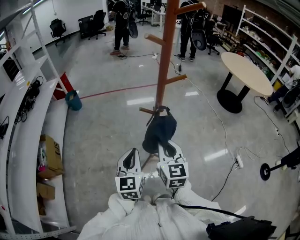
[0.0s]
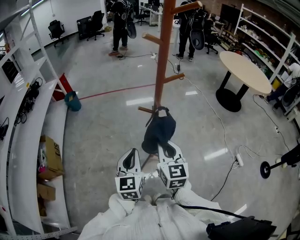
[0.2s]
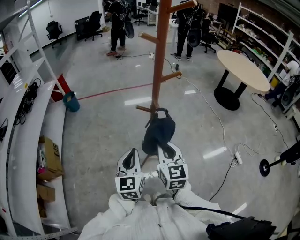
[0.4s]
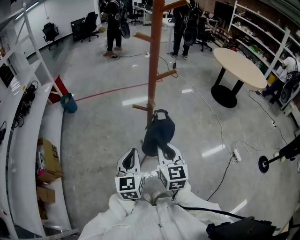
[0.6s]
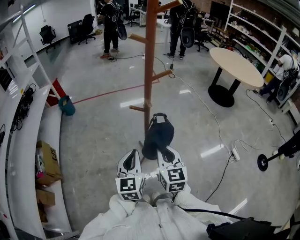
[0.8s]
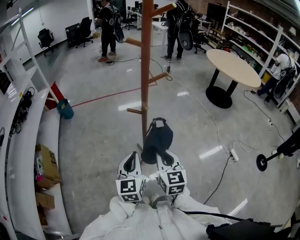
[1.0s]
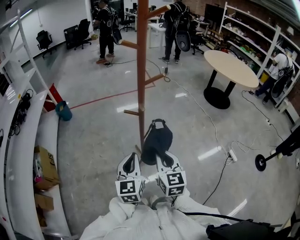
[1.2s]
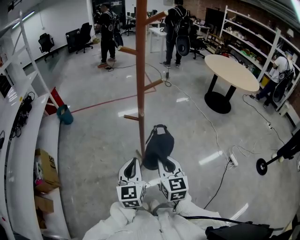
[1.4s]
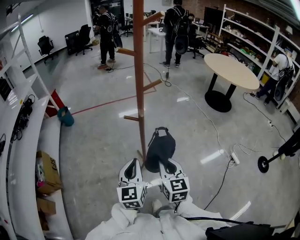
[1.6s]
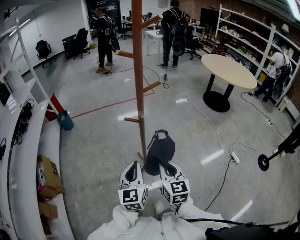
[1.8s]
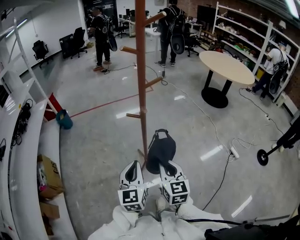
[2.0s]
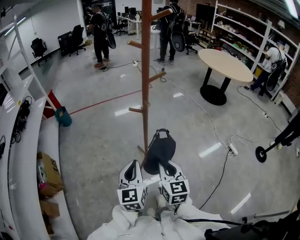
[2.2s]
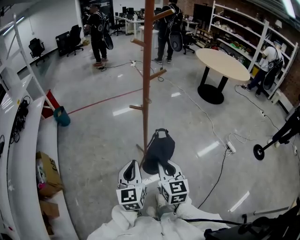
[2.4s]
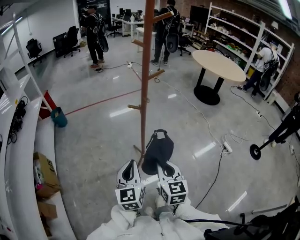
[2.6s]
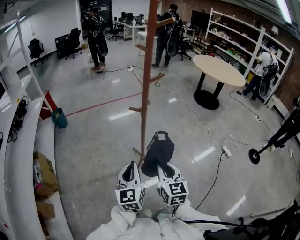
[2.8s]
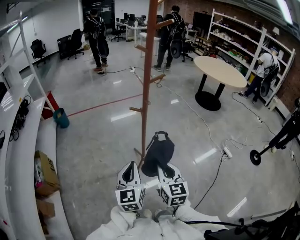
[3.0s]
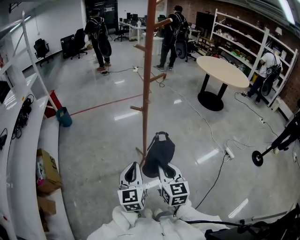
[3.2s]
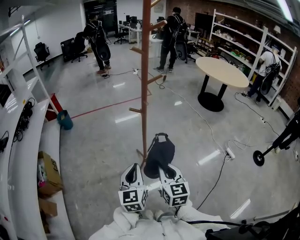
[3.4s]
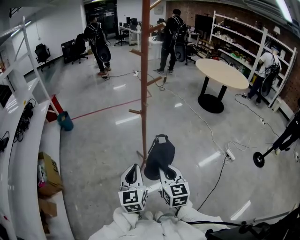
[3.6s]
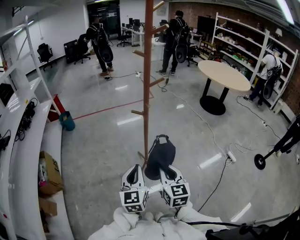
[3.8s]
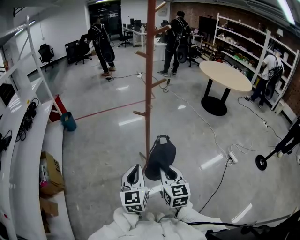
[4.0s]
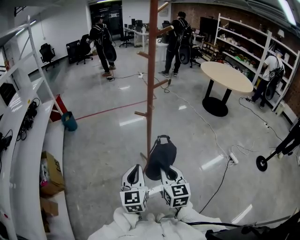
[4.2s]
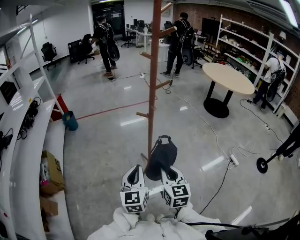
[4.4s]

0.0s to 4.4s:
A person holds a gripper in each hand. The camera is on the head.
0.0s to 1.4s: The left gripper shifts some 5 cm to the right. Meanwhile the right gripper goes some 10 cm backward and to the right.
1.4s to 3.0s: The right gripper heads backward, covering about 10 cm; the left gripper heads backward and to the left, covering approximately 10 cm.
3.0s to 4.4s: The grippers move only a little.

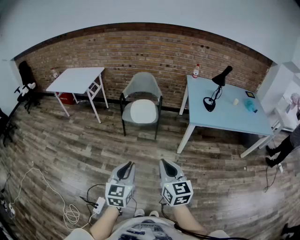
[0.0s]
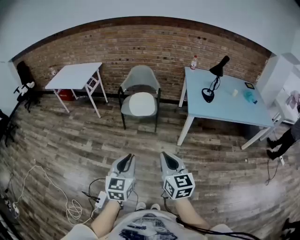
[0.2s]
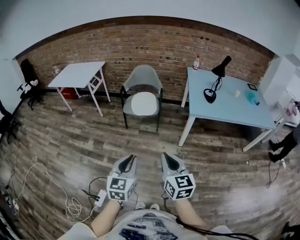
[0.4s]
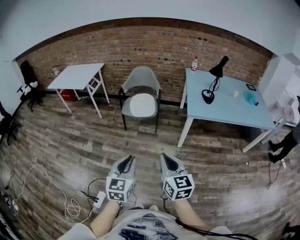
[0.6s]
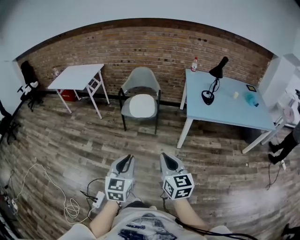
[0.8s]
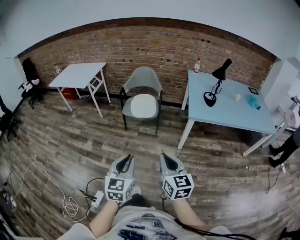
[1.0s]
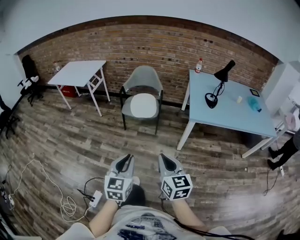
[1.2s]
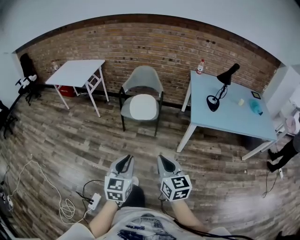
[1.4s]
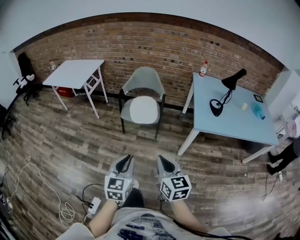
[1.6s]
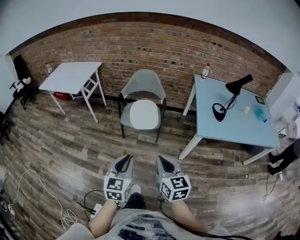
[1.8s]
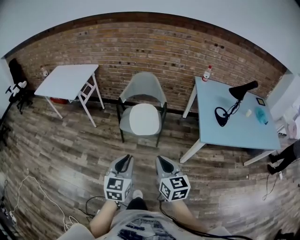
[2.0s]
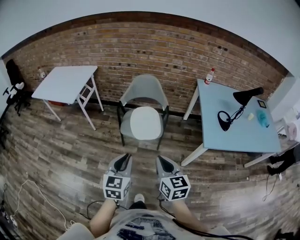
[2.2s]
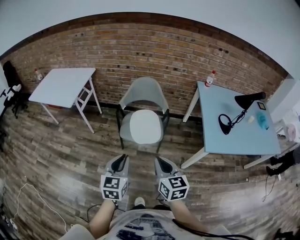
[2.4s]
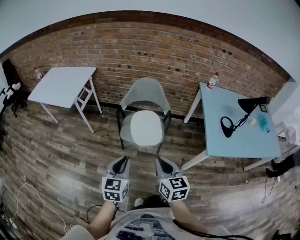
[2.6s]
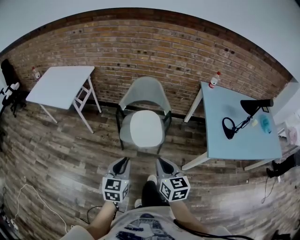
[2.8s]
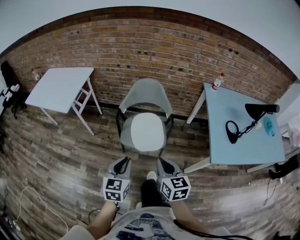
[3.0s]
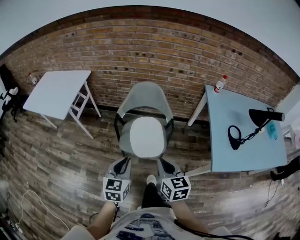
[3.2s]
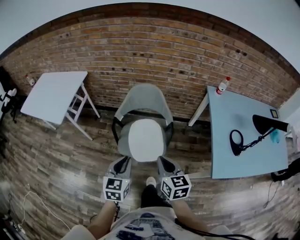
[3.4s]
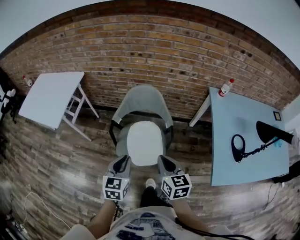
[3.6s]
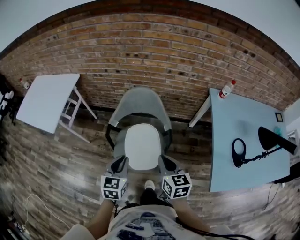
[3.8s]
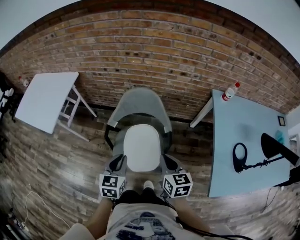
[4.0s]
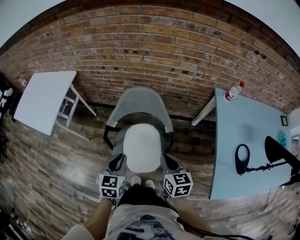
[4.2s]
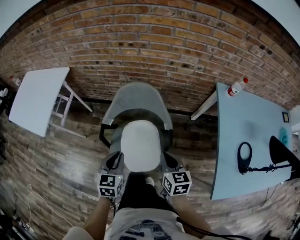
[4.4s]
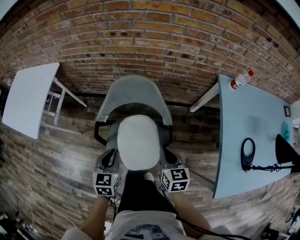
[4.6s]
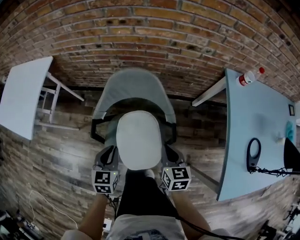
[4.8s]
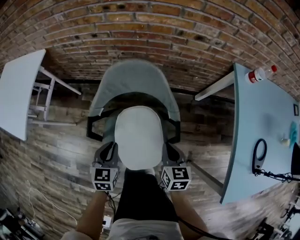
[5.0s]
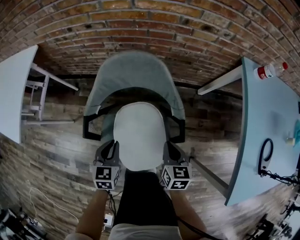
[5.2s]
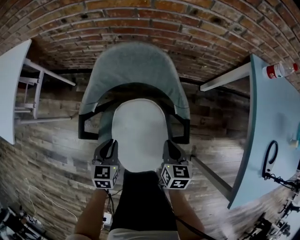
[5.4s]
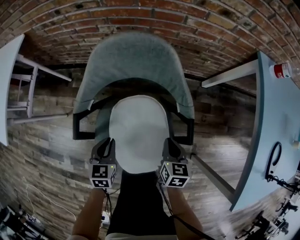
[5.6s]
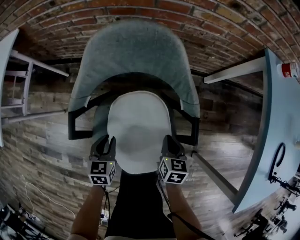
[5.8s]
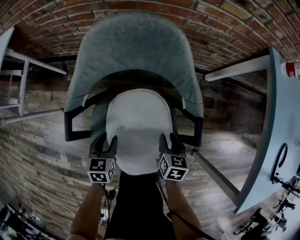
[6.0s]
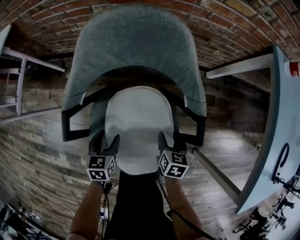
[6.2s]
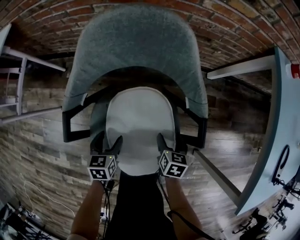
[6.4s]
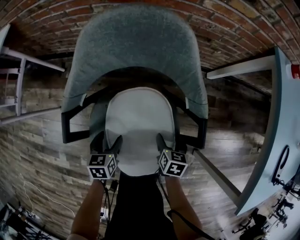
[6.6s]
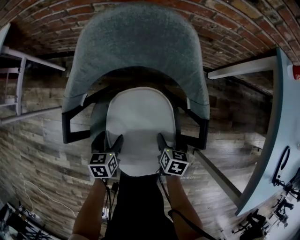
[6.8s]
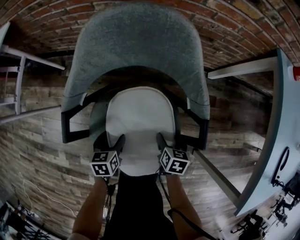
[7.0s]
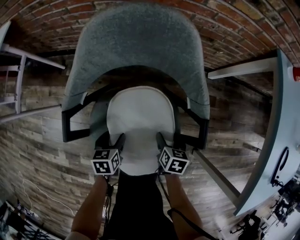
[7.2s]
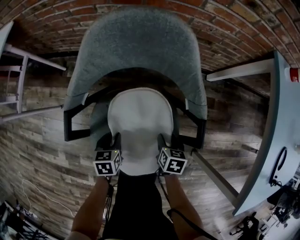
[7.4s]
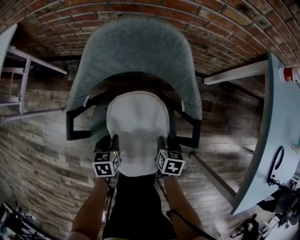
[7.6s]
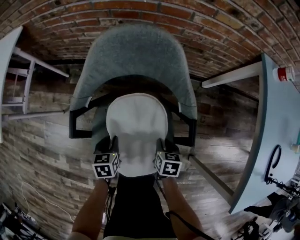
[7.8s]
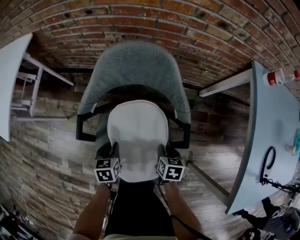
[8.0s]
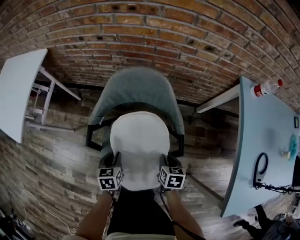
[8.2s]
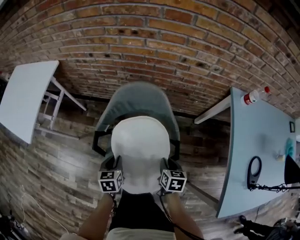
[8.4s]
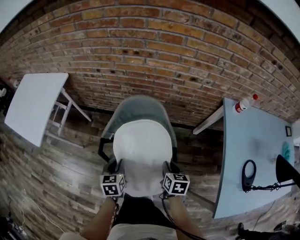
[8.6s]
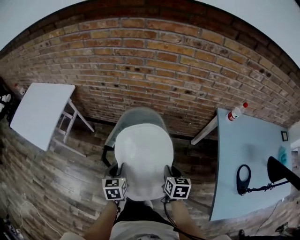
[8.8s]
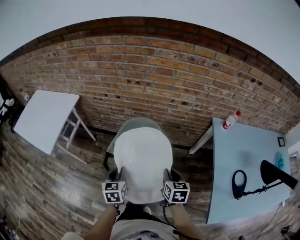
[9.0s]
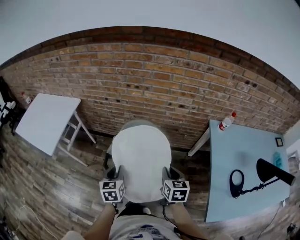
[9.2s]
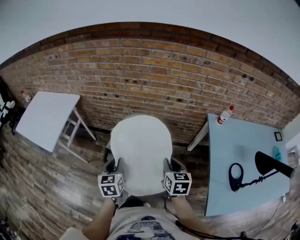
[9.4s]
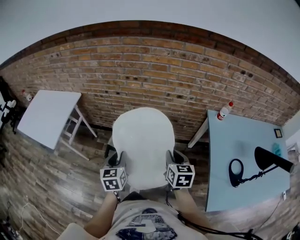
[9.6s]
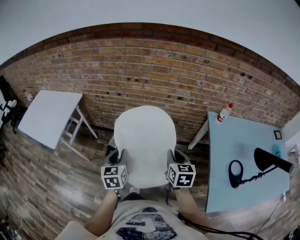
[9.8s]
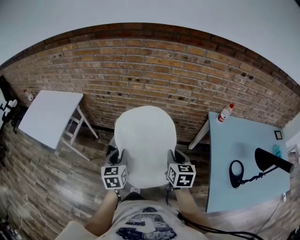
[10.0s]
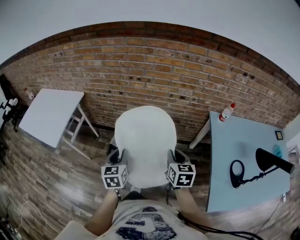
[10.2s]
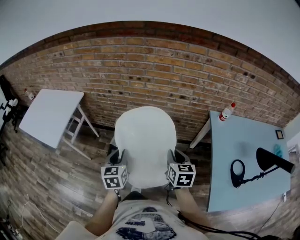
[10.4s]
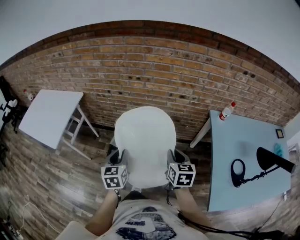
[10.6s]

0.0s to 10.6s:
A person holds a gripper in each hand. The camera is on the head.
0.0s to 1.6s: The grippers both shift forward by some 15 cm.
1.6s to 3.0s: The grippers both shift forward by about 35 cm.
3.0s to 4.6s: Both grippers move forward and downward, some 40 cm.
4.6s to 6.0s: The grippers both shift downward by approximately 35 cm. The right gripper turns by roughly 20 degrees, and opens.
6.0s to 7.6s: The right gripper opens, then closes again. Meanwhile the left gripper opens, then closes once more.
7.6s to 9.0s: Both grippers travel together upward, approximately 40 cm. The right gripper turns by approximately 30 degrees. The left gripper turns by roughly 30 degrees.
9.0s to 10.6s: Both grippers travel together upward, some 10 cm.

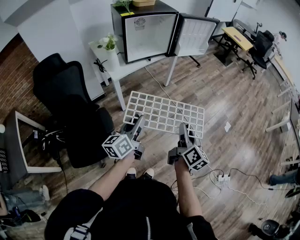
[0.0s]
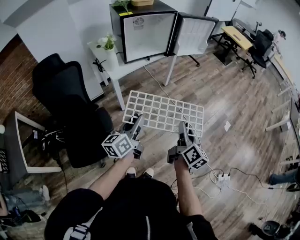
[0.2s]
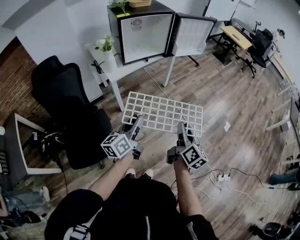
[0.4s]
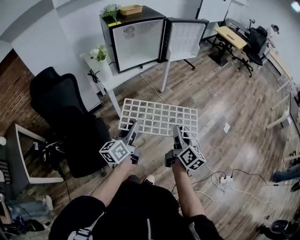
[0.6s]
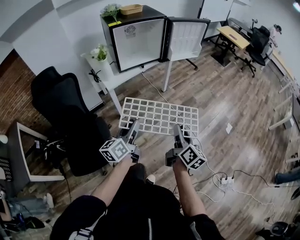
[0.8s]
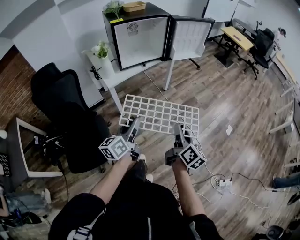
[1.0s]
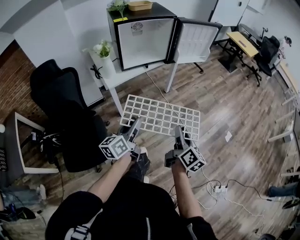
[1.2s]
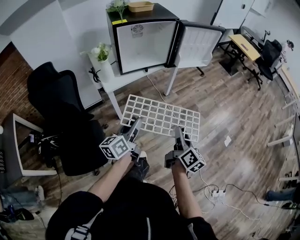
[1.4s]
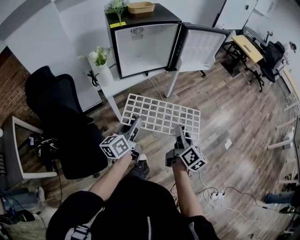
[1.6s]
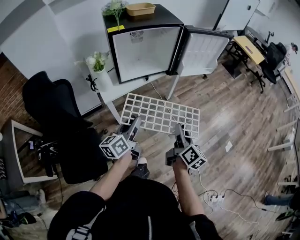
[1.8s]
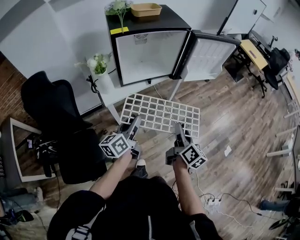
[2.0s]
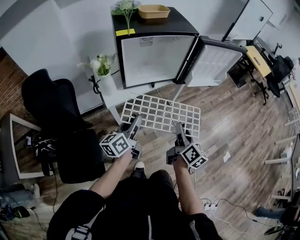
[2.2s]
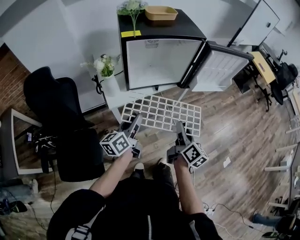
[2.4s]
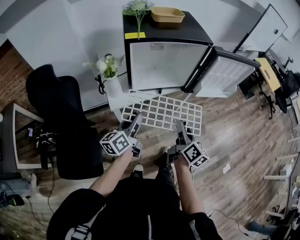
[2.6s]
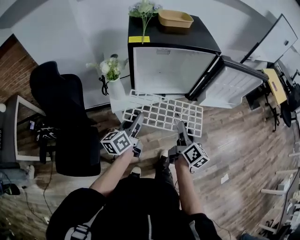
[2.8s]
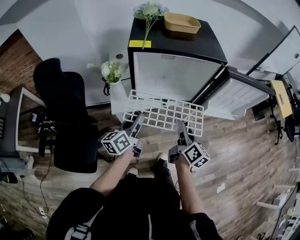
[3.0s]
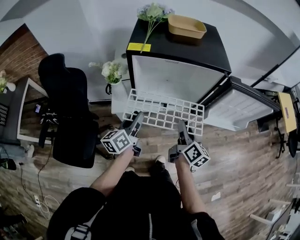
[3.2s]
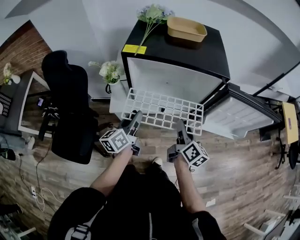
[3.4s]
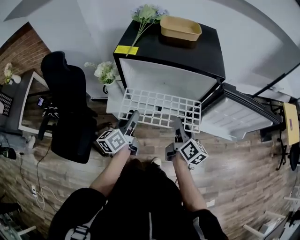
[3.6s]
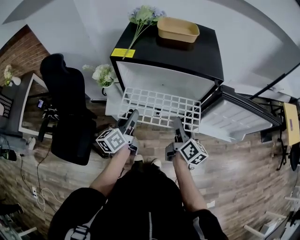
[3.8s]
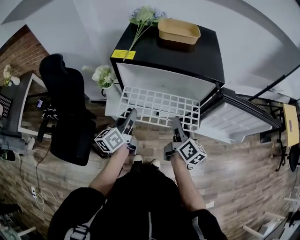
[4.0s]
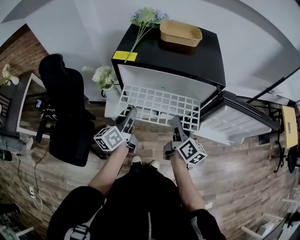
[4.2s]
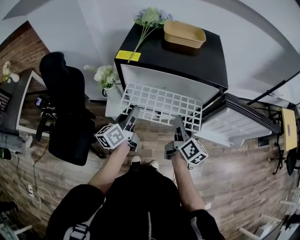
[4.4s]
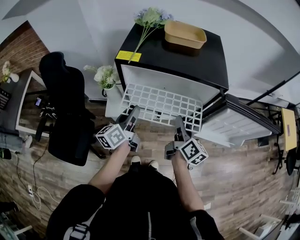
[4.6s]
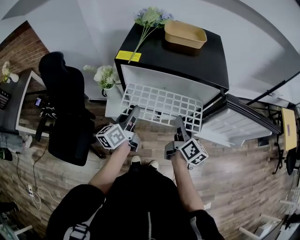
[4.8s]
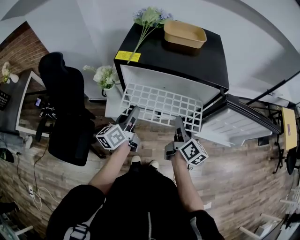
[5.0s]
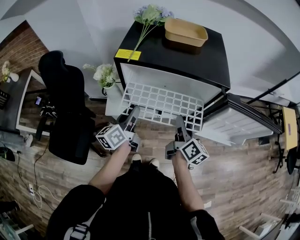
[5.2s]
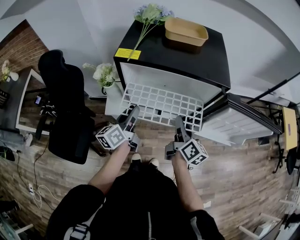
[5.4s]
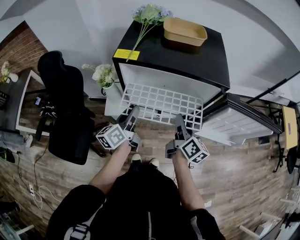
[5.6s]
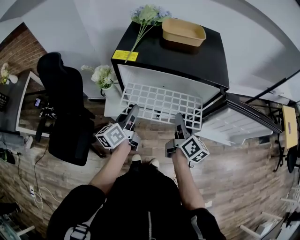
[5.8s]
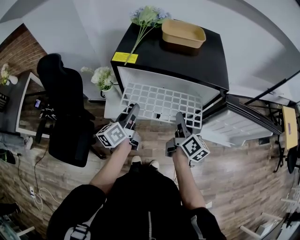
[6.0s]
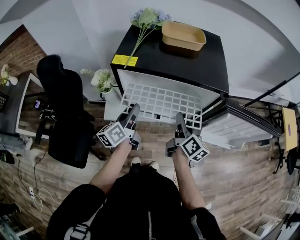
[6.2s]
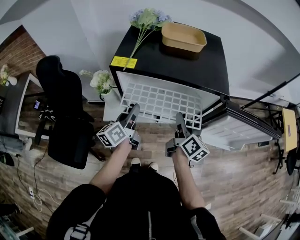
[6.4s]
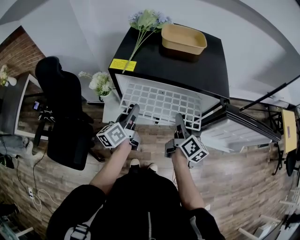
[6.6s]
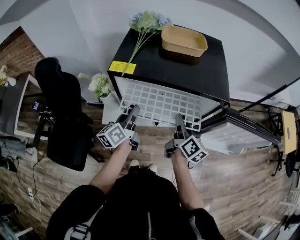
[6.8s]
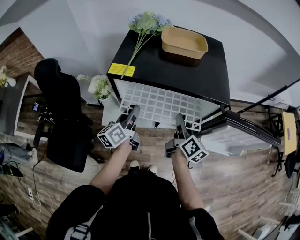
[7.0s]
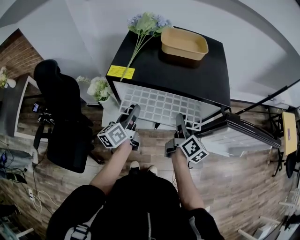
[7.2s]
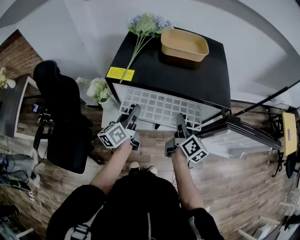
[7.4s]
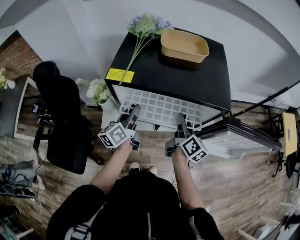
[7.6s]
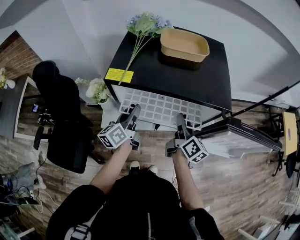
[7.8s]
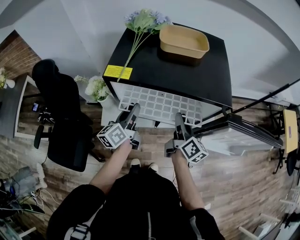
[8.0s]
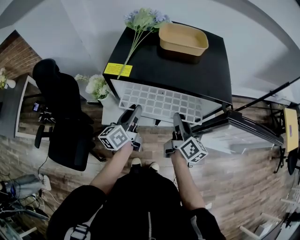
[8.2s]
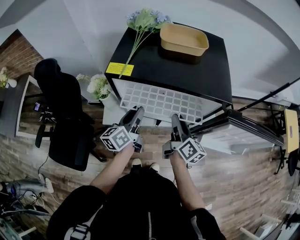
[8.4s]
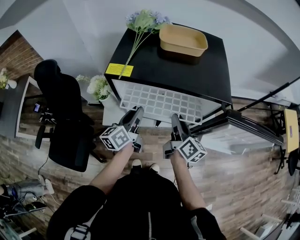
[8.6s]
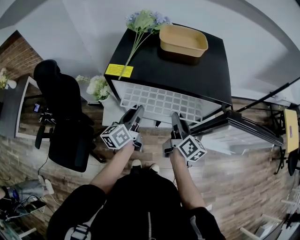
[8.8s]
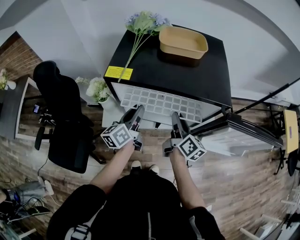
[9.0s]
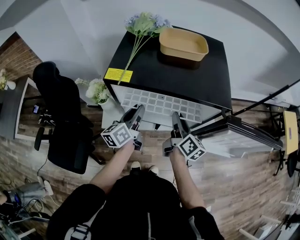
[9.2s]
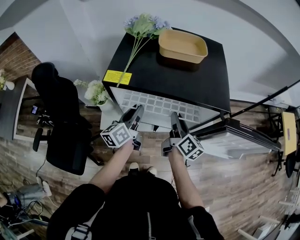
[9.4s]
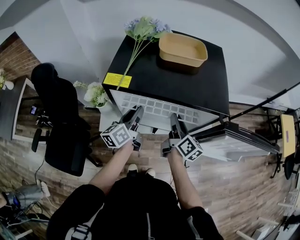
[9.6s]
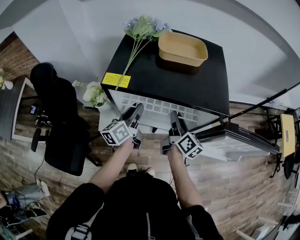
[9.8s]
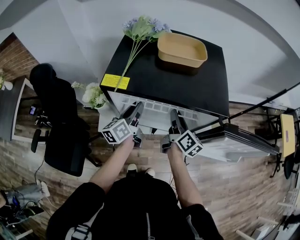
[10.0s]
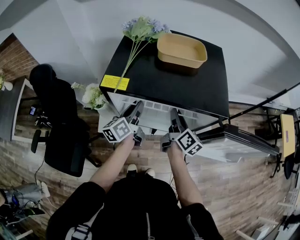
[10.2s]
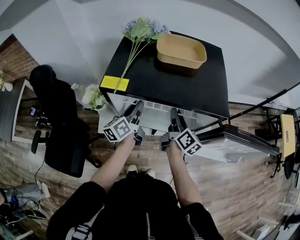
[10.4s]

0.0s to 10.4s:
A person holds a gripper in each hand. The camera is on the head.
0.0s to 1.4s: Both grippers travel together forward, roughly 15 cm.
1.4s to 3.0s: Both grippers move forward, approximately 35 cm. The right gripper rotates roughly 20 degrees, while the left gripper changes its angle by roughly 20 degrees.
3.0s to 4.4s: Both grippers move forward, roughly 10 cm.
4.4s to 6.0s: There are only small adjustments of the grippers.
6.0s to 7.4s: The grippers both shift forward by some 5 cm.
7.4s to 9.0s: The grippers make only small movements.
9.0s to 10.4s: Both grippers travel together forward, about 5 cm.
